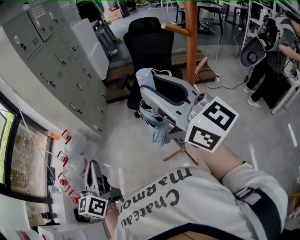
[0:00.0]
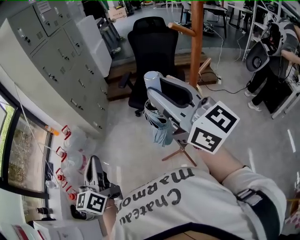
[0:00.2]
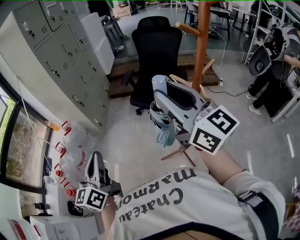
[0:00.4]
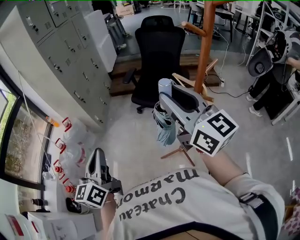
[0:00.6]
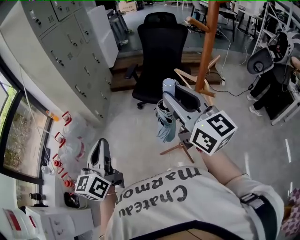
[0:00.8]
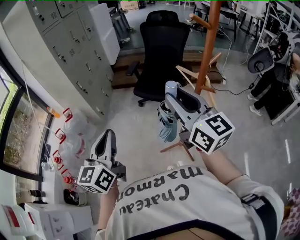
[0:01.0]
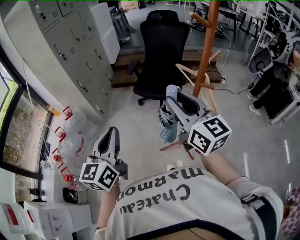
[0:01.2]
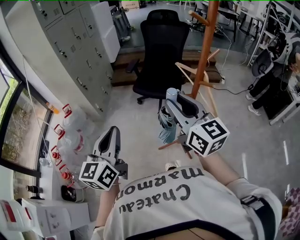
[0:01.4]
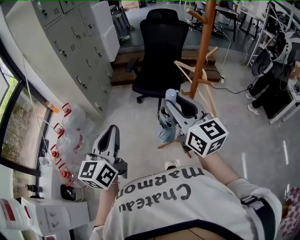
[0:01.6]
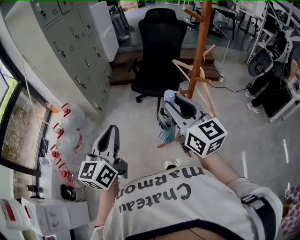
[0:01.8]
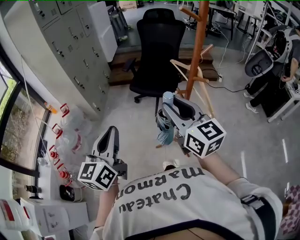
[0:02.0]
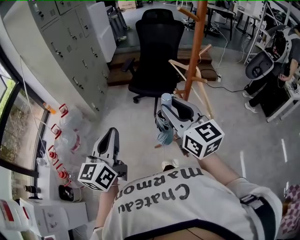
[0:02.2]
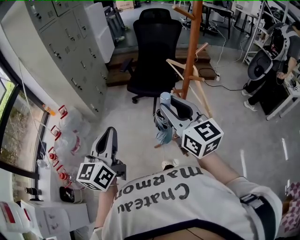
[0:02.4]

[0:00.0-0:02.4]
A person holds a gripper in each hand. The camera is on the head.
0:00.0 to 0:01.2: The right gripper goes roughly 10 cm downward. The left gripper moves to the right, approximately 5 cm.
0:01.2 to 0:02.4: The right gripper changes place by about 5 cm.

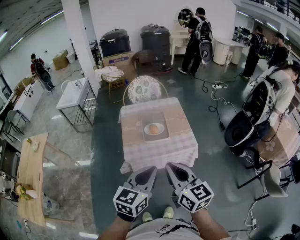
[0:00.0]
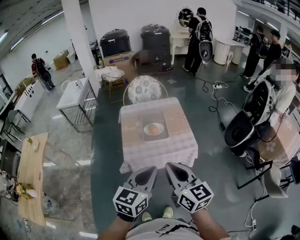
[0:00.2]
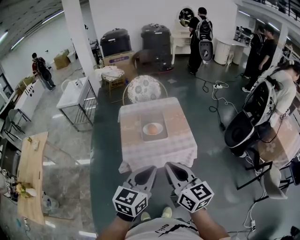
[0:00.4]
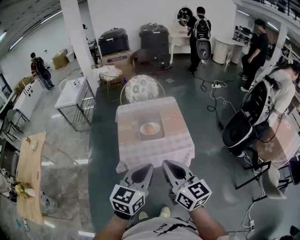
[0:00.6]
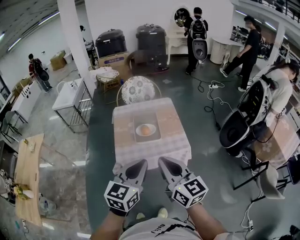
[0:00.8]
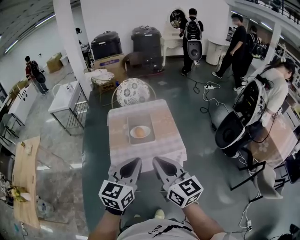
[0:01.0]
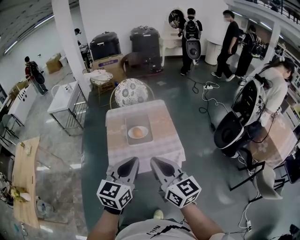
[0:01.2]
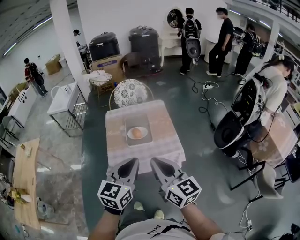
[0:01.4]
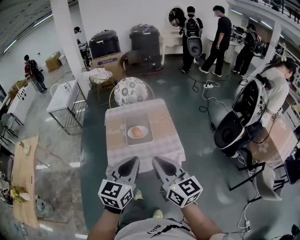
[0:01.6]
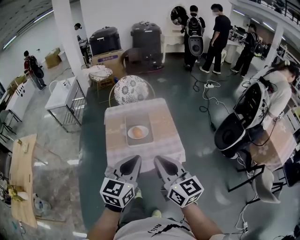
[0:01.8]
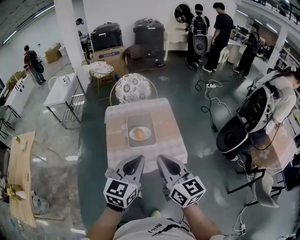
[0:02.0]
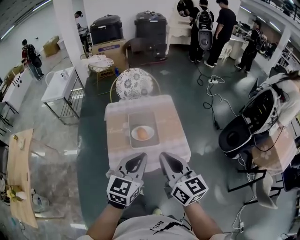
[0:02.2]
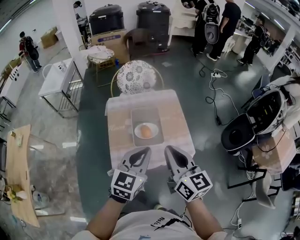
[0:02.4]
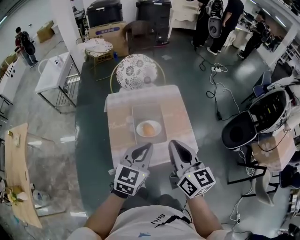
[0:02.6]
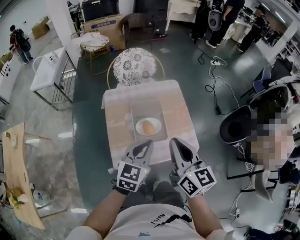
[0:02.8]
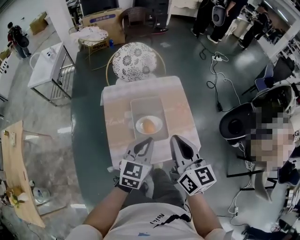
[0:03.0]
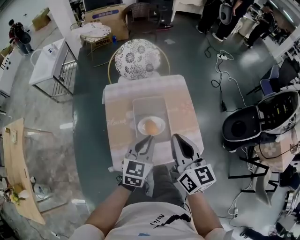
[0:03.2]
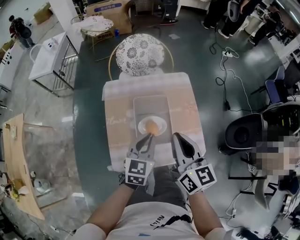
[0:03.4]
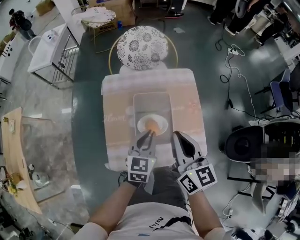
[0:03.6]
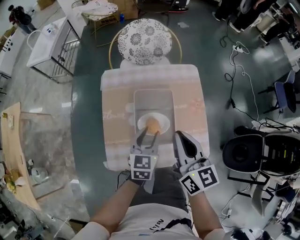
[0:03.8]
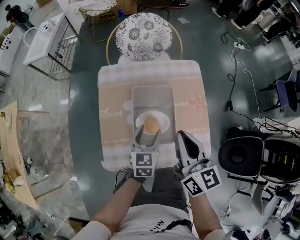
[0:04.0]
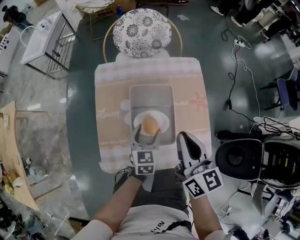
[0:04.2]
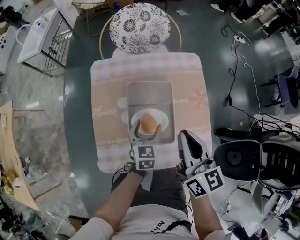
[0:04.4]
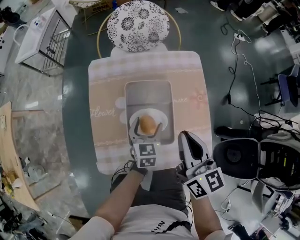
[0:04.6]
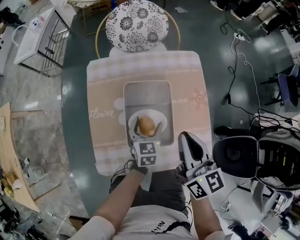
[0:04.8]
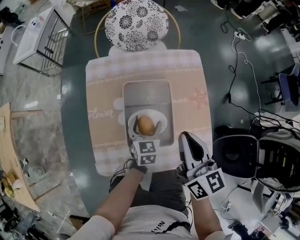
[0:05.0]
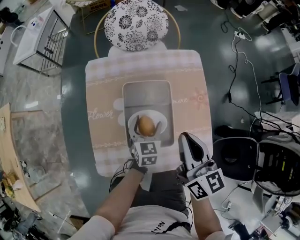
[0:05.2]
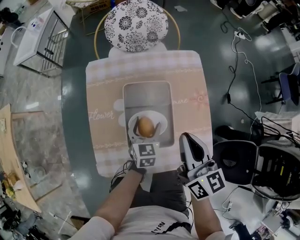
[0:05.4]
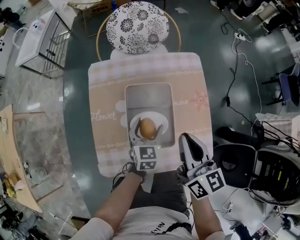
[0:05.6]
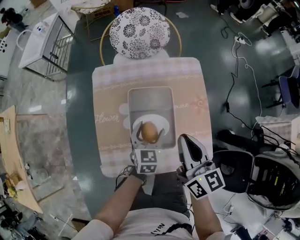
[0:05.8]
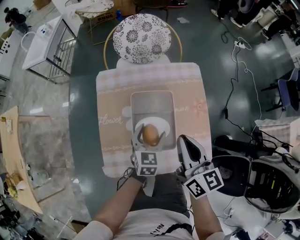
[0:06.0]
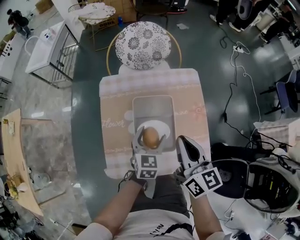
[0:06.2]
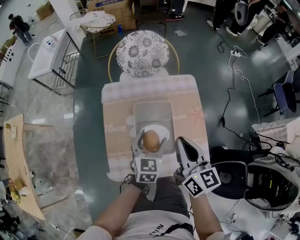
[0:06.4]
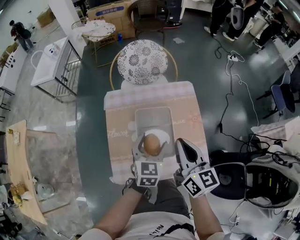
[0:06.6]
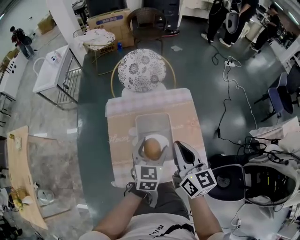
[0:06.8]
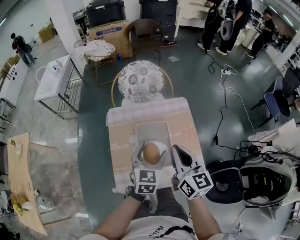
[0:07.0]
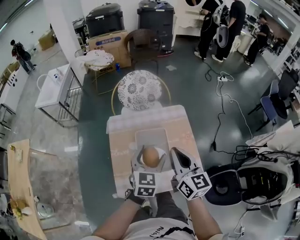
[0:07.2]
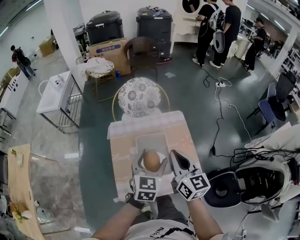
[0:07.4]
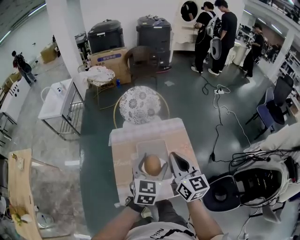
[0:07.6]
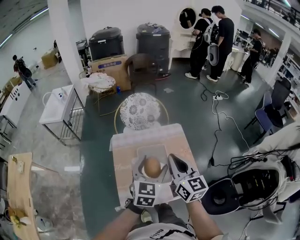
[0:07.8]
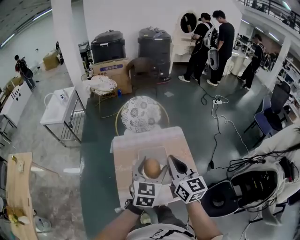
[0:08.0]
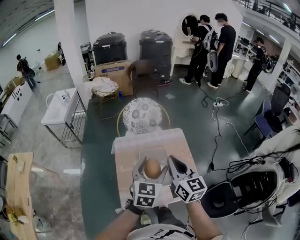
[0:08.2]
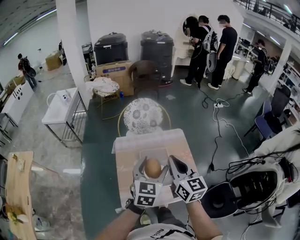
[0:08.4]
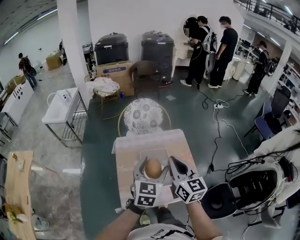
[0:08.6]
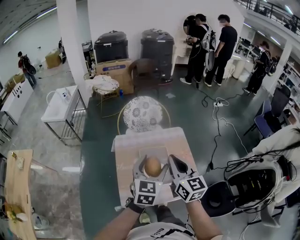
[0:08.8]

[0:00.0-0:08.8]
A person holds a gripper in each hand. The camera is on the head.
0:00.0 to 0:01.4: The right gripper goes about 5 cm to the right, while the left gripper goes approximately 10 cm to the right and forward.
0:01.4 to 0:03.0: The left gripper goes about 30 cm forward and downward; the right gripper moves forward, some 25 cm.
0:03.0 to 0:04.4: The right gripper shifts some 20 cm downward and forward; the left gripper shifts approximately 30 cm downward and forward, rotates about 30 degrees, and opens up.
0:04.4 to 0:05.8: There are only small adjustments of the grippers.
0:05.8 to 0:07.4: The left gripper shifts about 25 cm upward. Meanwhile the right gripper shifts roughly 15 cm upward.
0:07.4 to 0:08.8: The grippers both shift upward by some 5 cm.

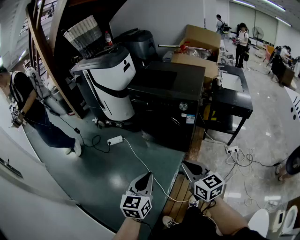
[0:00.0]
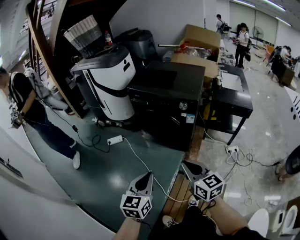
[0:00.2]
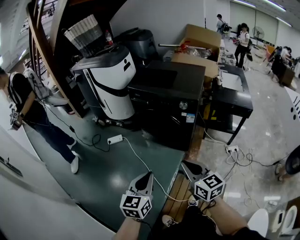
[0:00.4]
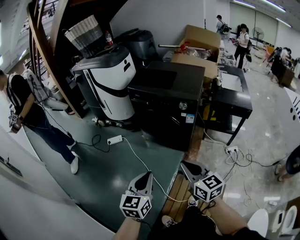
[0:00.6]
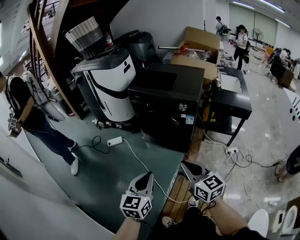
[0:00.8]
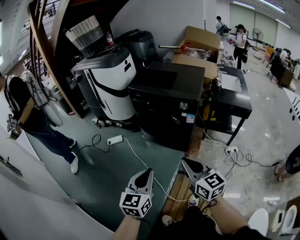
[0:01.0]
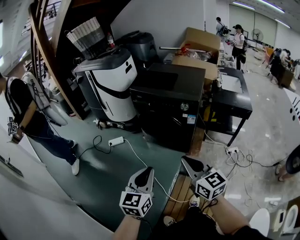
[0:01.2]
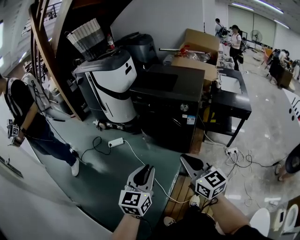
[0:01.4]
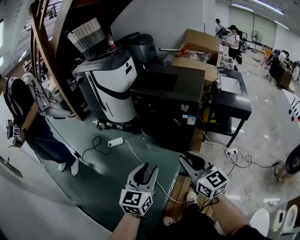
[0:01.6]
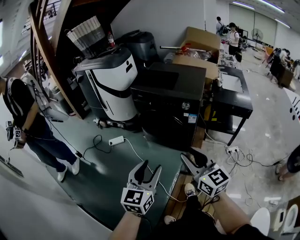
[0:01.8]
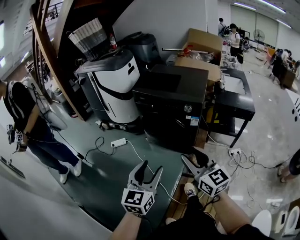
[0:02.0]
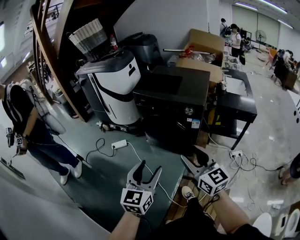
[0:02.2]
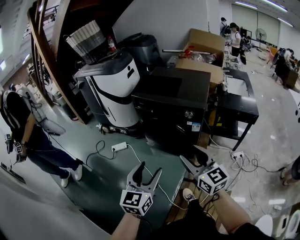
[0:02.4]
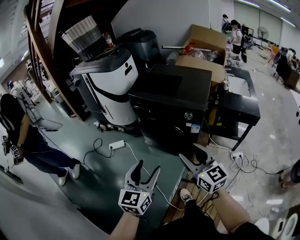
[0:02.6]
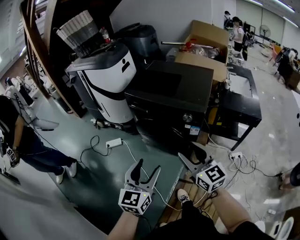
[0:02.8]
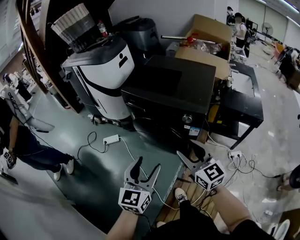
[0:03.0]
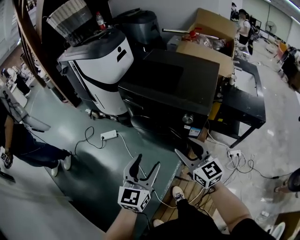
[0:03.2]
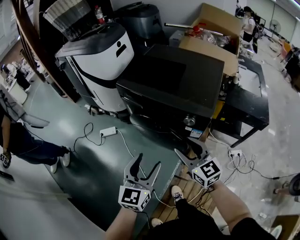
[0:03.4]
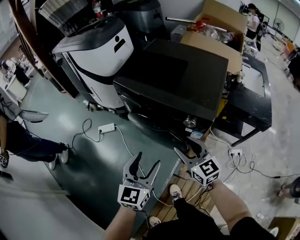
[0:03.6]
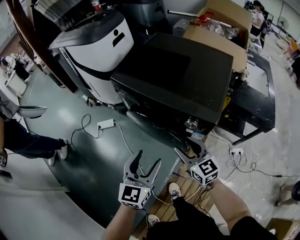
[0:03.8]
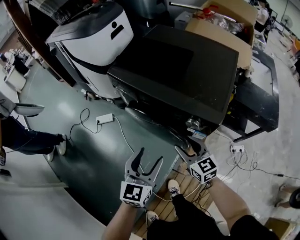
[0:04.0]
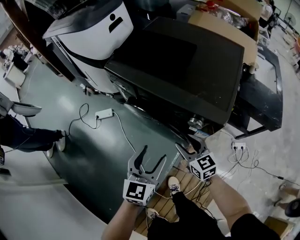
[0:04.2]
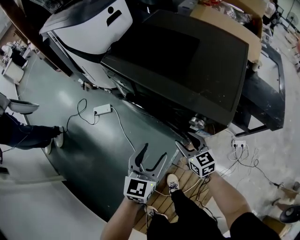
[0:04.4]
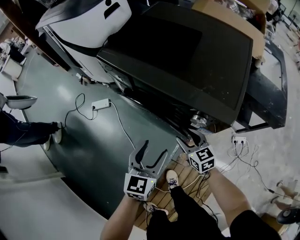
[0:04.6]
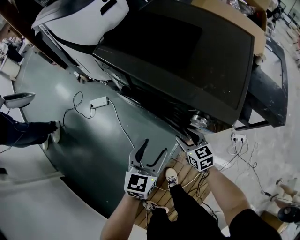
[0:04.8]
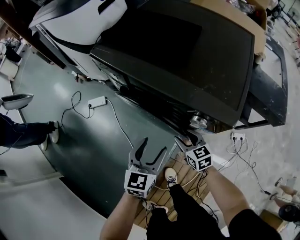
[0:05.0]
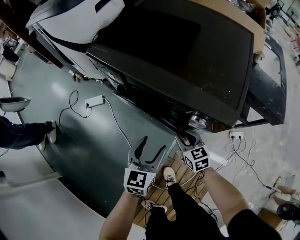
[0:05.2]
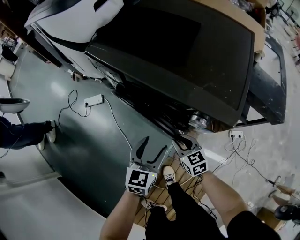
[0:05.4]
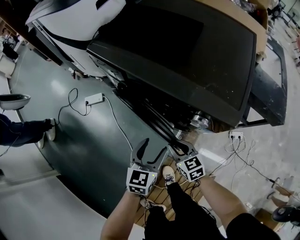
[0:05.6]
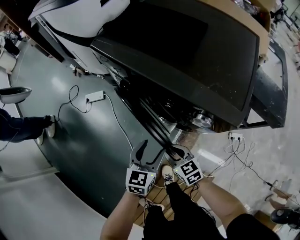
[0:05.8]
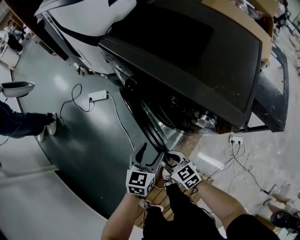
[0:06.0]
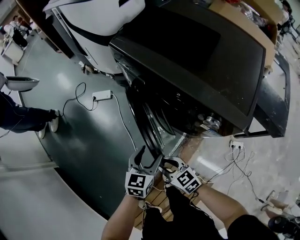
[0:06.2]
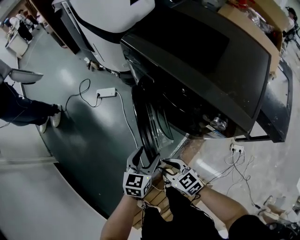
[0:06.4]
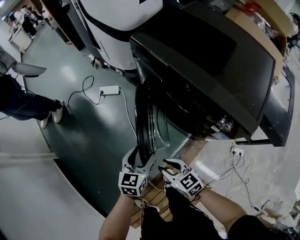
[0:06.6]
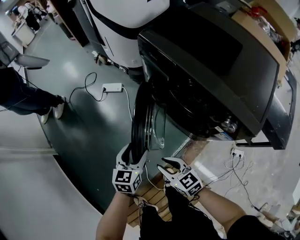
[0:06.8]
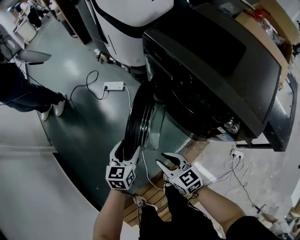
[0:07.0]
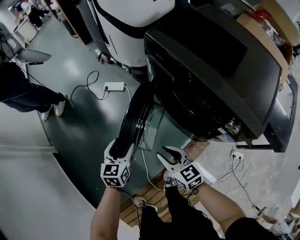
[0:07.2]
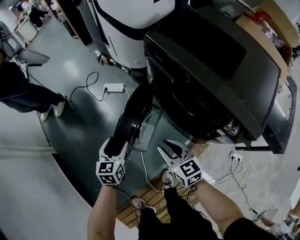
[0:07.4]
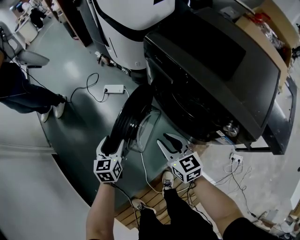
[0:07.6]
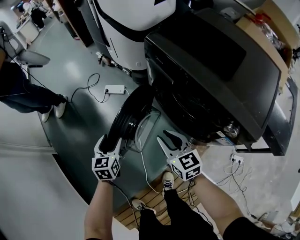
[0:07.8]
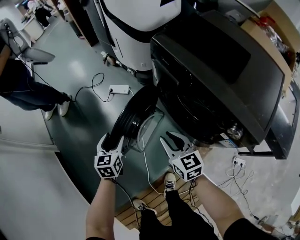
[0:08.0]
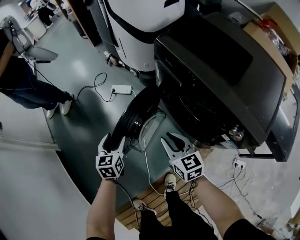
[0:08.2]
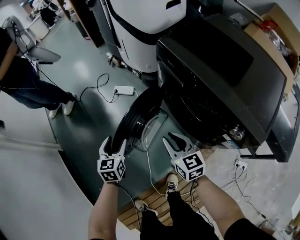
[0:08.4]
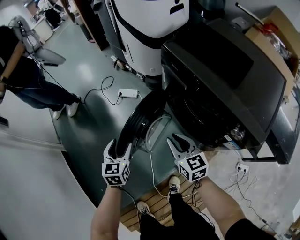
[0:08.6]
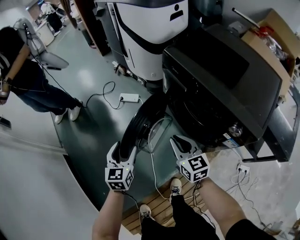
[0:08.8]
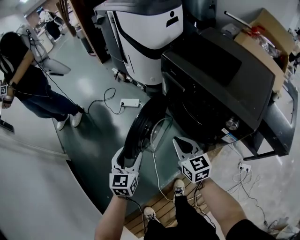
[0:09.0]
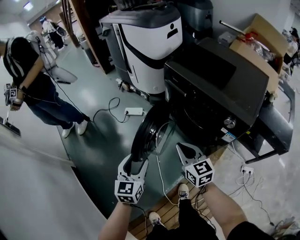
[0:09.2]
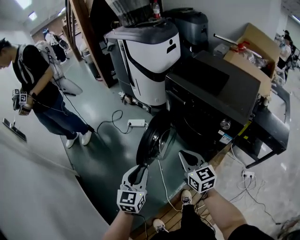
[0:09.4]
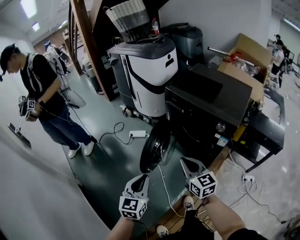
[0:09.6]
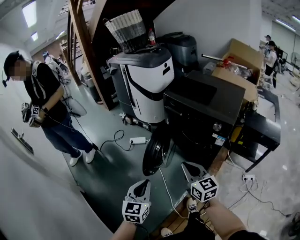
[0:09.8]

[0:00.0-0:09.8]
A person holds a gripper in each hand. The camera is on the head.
0:00.0 to 0:01.4: The grippers both shift upward by some 5 cm.
0:01.4 to 0:02.8: The two grippers go roughly 20 cm forward. The right gripper opens its fingers. Meanwhile the left gripper opens its fingers.
0:02.8 to 0:04.2: The left gripper shifts roughly 30 cm forward, downward and to the right. Meanwhile the right gripper moves downward and forward, roughly 35 cm, and turns by some 20 degrees.
0:04.2 to 0:05.6: Both grippers move downward, roughly 15 cm. The right gripper closes.
0:05.6 to 0:07.0: The right gripper shifts by some 20 cm, and rotates some 30 degrees; the left gripper ends up approximately 25 cm from where it was, and swivels approximately 30 degrees.
0:07.0 to 0:08.4: The left gripper travels to the left and forward by roughly 10 cm. The right gripper travels forward and upward by some 10 cm.
0:08.4 to 0:09.8: The grippers both shift backward and upward by about 35 cm. The right gripper swivels about 20 degrees, and closes its fingers, while the left gripper turns by about 30 degrees, and closes its fingers.

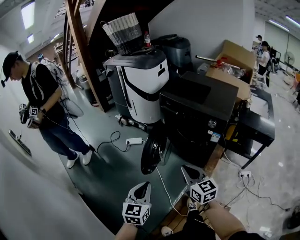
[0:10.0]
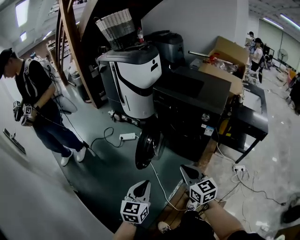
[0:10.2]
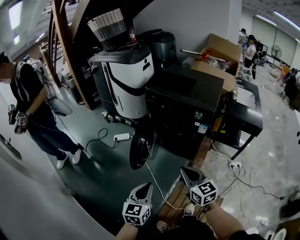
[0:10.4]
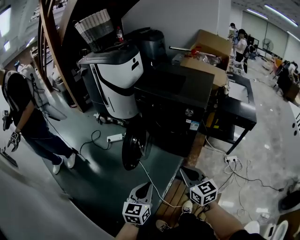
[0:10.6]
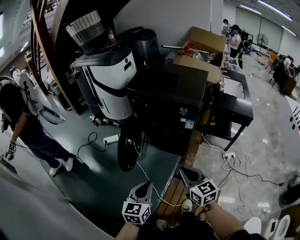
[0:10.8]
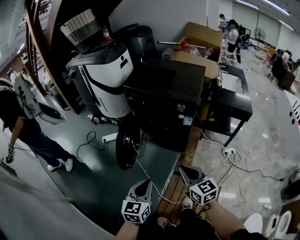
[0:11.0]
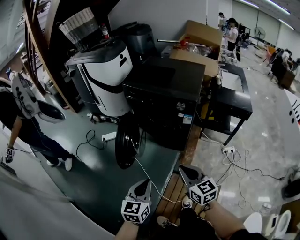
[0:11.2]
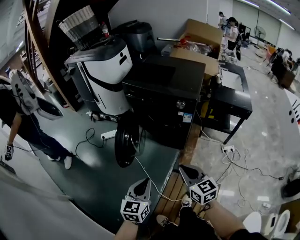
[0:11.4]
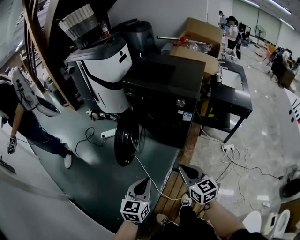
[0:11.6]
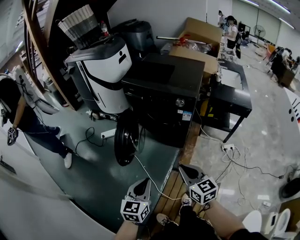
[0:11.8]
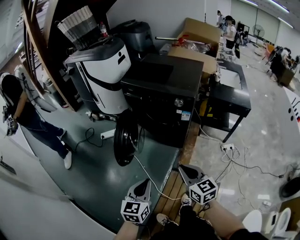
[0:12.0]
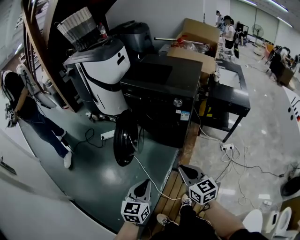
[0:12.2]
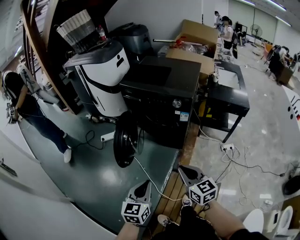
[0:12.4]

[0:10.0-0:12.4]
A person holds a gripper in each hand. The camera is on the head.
0:10.0 to 0:11.2: The right gripper shifts about 15 cm to the right and backward, while the left gripper shifts roughly 10 cm to the right.
0:11.2 to 0:12.4: The grippers move only a little.
